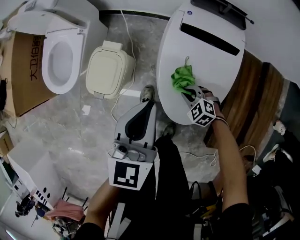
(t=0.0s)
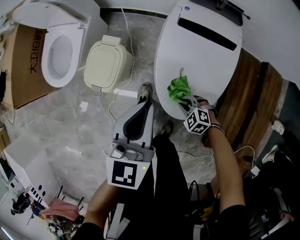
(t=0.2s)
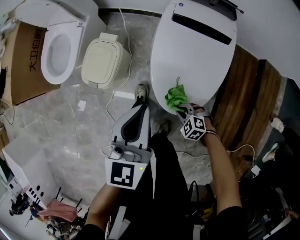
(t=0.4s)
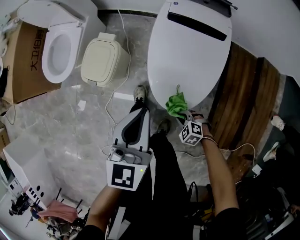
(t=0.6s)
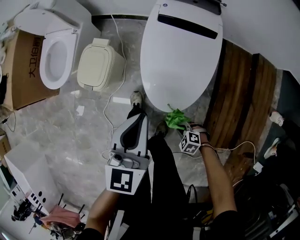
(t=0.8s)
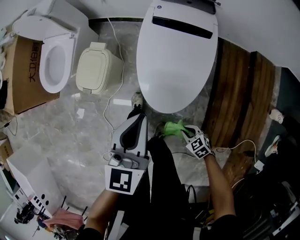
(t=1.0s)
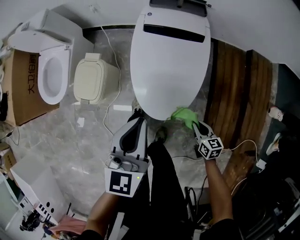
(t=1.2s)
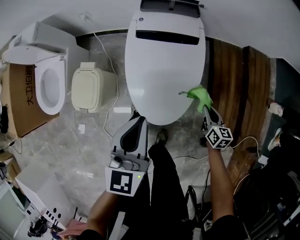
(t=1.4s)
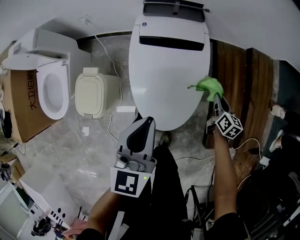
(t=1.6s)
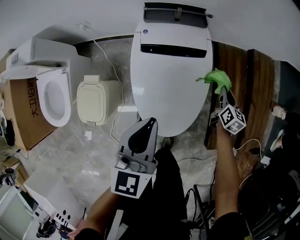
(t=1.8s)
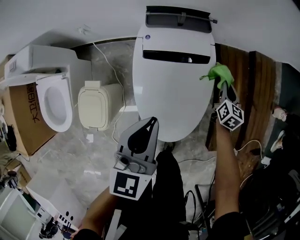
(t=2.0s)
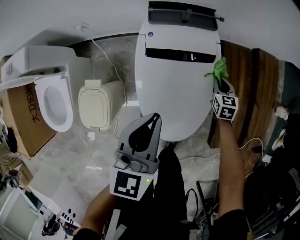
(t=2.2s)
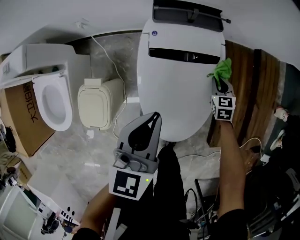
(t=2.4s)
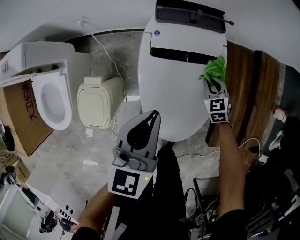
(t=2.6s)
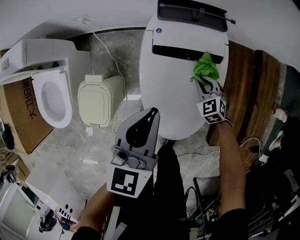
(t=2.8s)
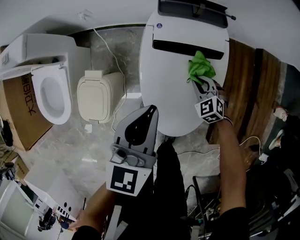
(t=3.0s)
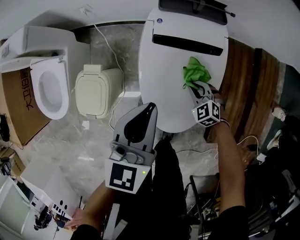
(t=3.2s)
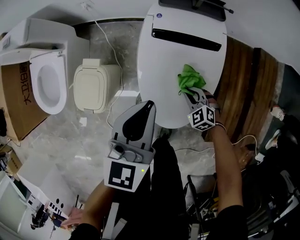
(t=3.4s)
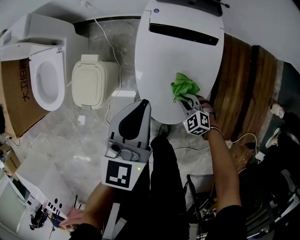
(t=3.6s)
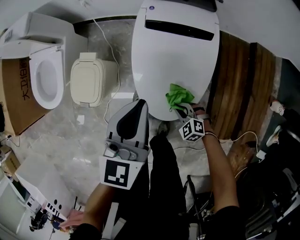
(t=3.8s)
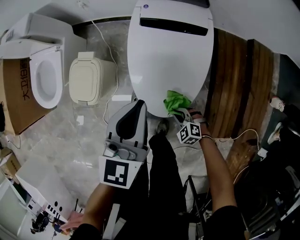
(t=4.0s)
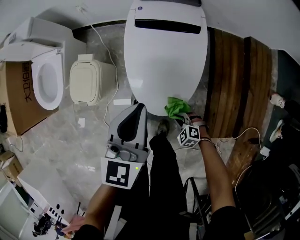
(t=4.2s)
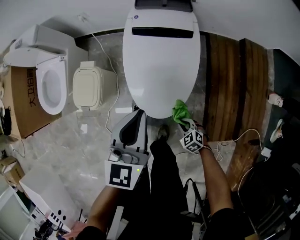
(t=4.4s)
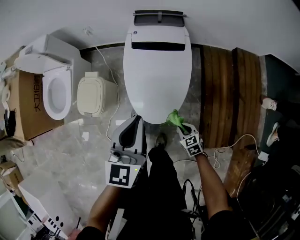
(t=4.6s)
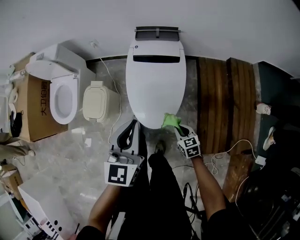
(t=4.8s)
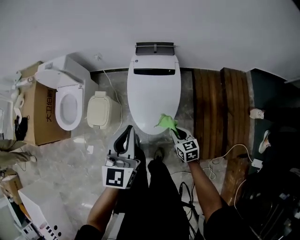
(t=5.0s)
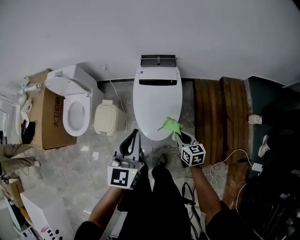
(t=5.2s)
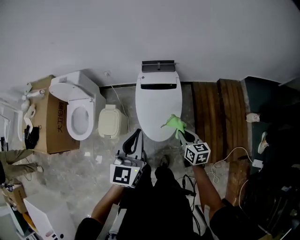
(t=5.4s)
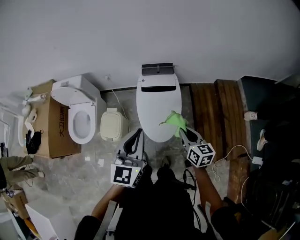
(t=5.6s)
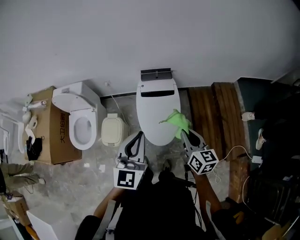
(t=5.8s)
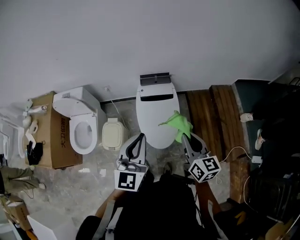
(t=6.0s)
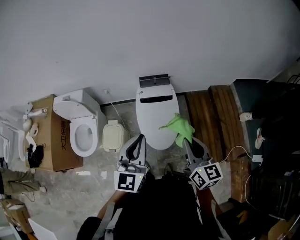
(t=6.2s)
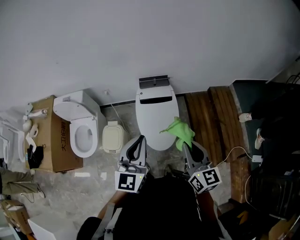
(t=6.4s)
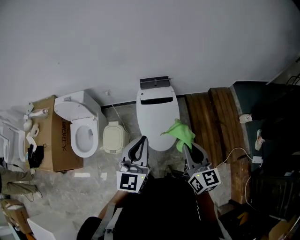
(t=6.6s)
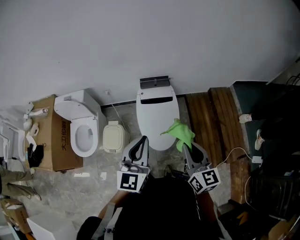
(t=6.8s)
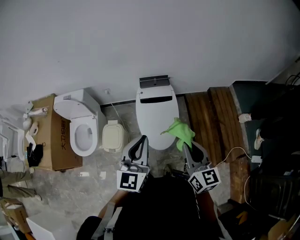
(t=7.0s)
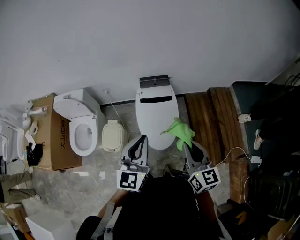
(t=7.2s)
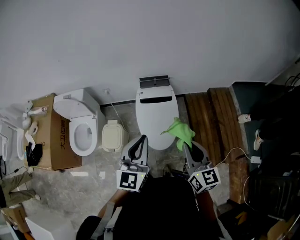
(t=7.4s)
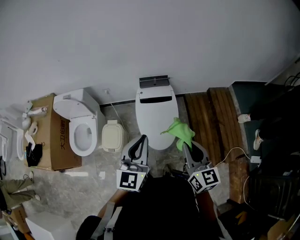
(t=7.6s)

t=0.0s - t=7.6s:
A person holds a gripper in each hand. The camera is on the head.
t=0.0s - t=1.6s: The right gripper ends up about 30 cm from where it was, and twists roughly 80 degrees clockwise, seen from behind; the left gripper moves approximately 15 cm.
t=1.6s - t=3.0s: The right gripper shifts roughly 20 cm to the left, and twists some 70 degrees counterclockwise, seen from behind. Meanwhile the left gripper heads forward and to the left, covering roughly 15 cm.
t=3.0s - t=4.6s: The left gripper is displaced backward and upward by about 25 cm. Meanwhile the right gripper is displaced backward by roughly 35 cm, and turns by approximately 30 degrees.
t=4.6s - t=6.0s: The left gripper heads upward, covering roughly 30 cm. The right gripper heads upward, covering approximately 60 cm, and angles its fingers upward, by about 40 degrees.
t=6.0s - t=7.6s: The right gripper travels backward by about 5 cm.

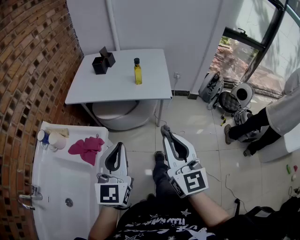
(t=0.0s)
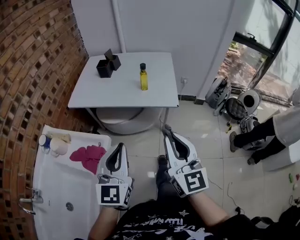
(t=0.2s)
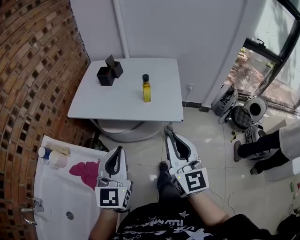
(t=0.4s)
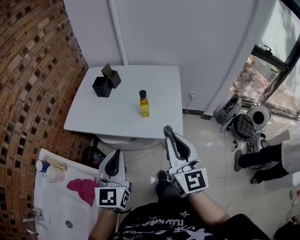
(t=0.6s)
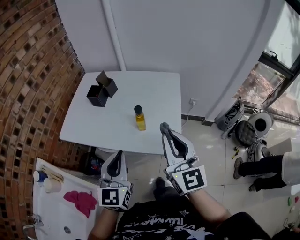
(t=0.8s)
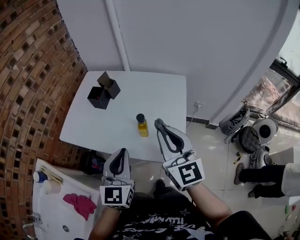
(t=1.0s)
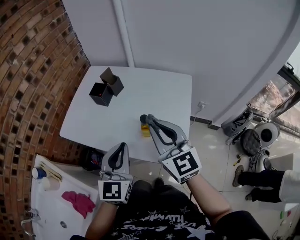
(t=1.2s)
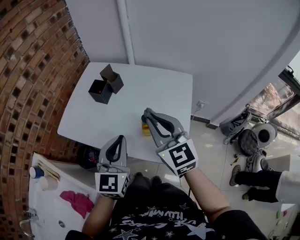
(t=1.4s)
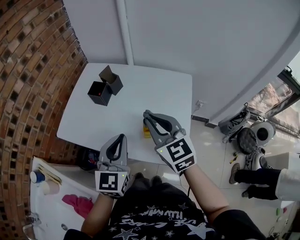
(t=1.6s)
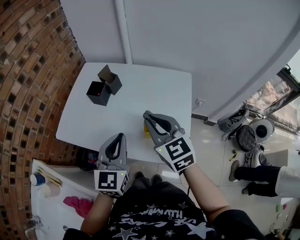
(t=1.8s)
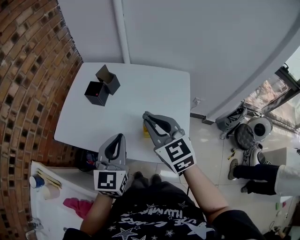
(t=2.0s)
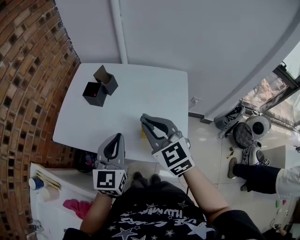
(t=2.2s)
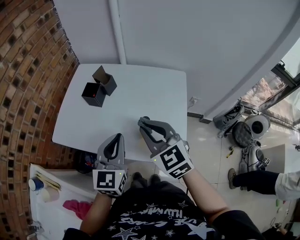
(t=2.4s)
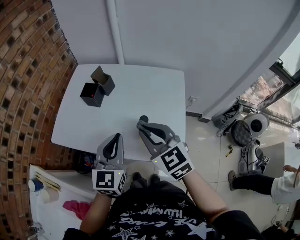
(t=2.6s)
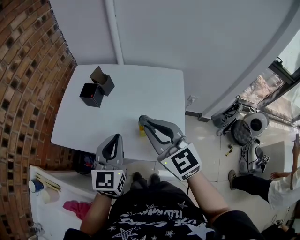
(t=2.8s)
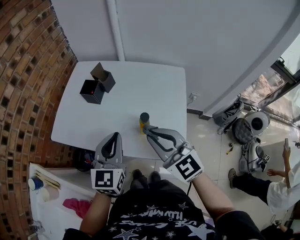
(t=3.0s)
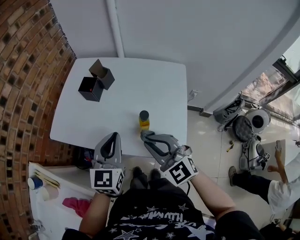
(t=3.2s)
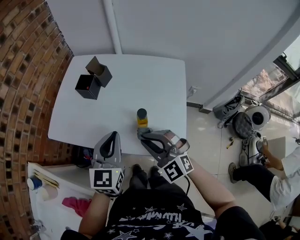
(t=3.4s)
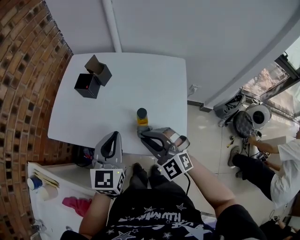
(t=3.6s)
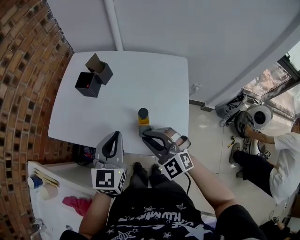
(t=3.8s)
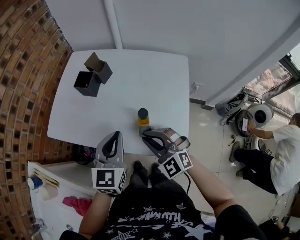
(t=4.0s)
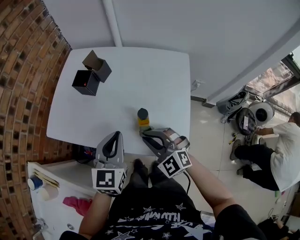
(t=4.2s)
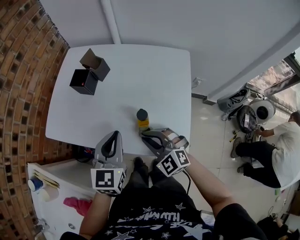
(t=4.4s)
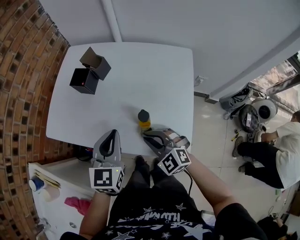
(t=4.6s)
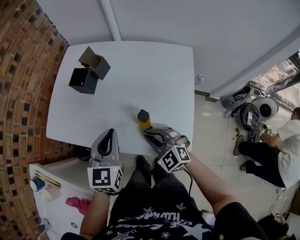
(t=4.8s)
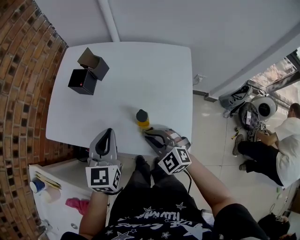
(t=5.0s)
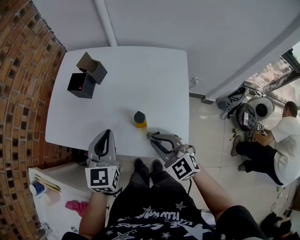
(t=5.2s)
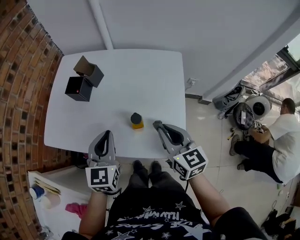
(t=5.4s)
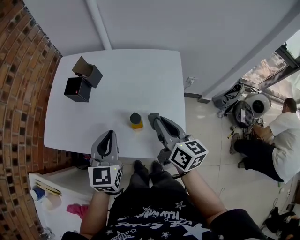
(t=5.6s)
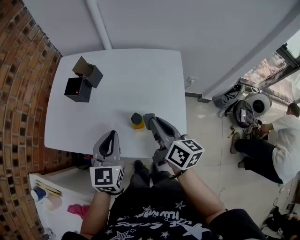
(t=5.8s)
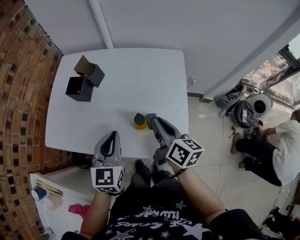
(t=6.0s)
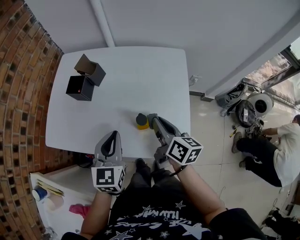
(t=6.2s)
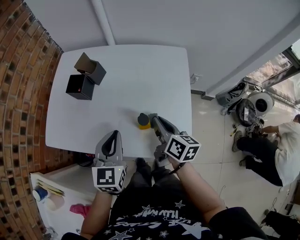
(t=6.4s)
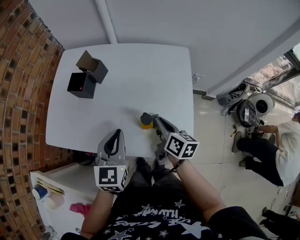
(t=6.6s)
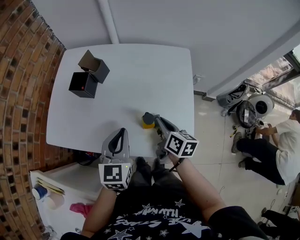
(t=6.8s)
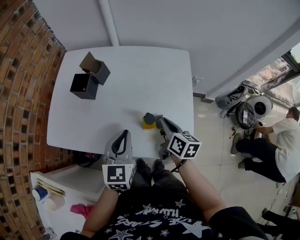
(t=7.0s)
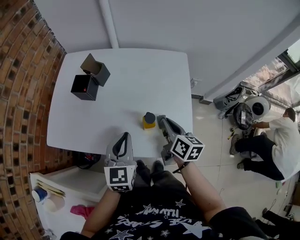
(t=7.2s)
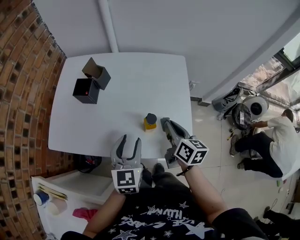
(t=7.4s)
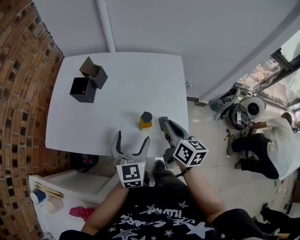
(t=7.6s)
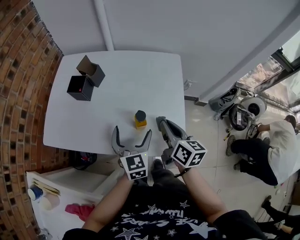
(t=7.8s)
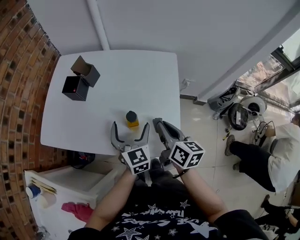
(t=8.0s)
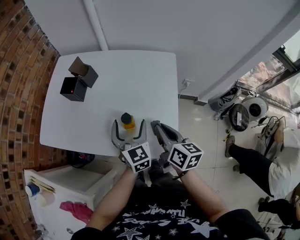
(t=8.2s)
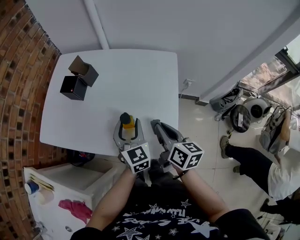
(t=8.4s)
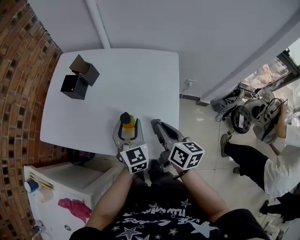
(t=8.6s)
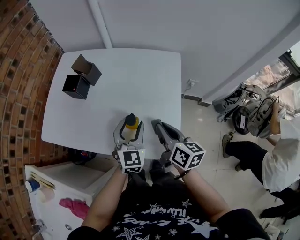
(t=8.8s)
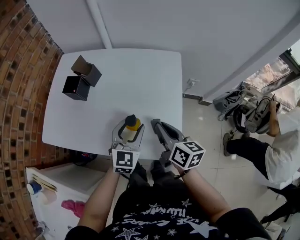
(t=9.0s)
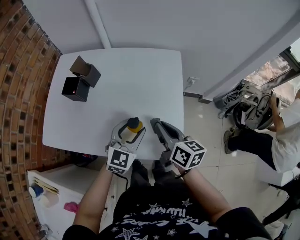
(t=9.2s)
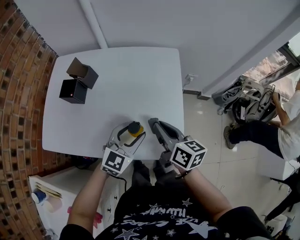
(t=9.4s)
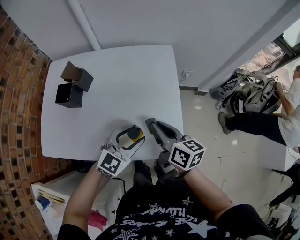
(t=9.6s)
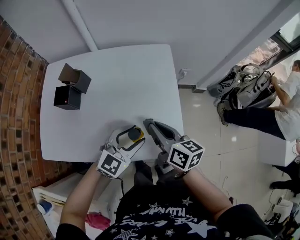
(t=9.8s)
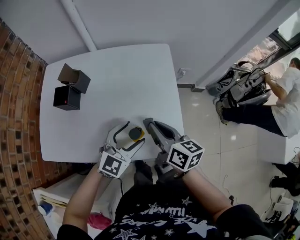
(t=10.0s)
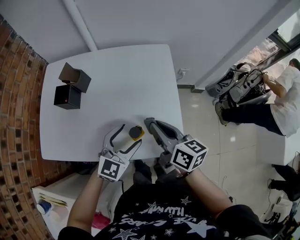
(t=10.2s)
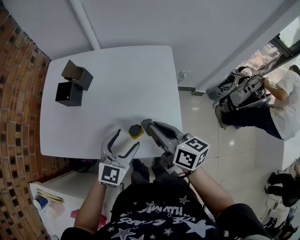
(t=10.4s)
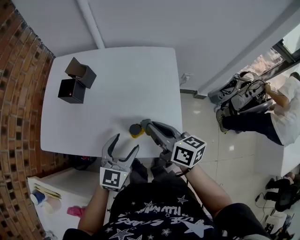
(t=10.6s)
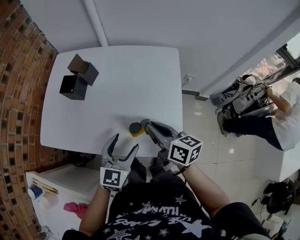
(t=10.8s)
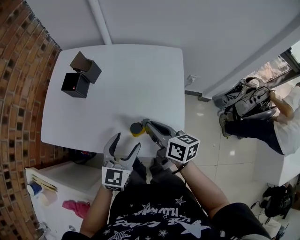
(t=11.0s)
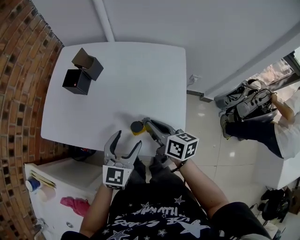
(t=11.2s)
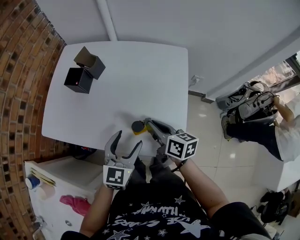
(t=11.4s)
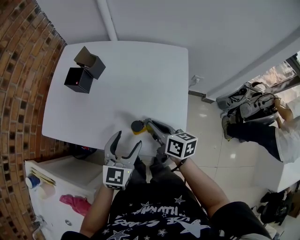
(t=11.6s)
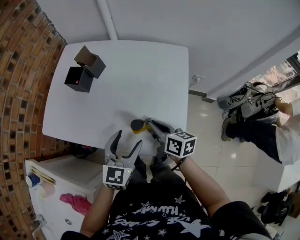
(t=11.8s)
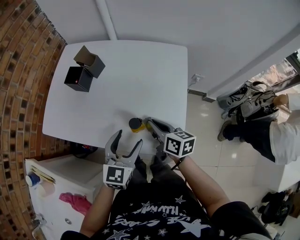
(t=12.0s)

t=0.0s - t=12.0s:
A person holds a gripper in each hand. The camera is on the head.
t=0.0s - t=1.6s: The two grippers travel together, forward, some 40 cm. The right gripper turns by roughly 30 degrees.
t=1.6s - t=3.0s: The right gripper shifts approximately 5 cm backward.
t=3.0s - t=4.4s: The left gripper moves downward, approximately 5 cm. The right gripper is displaced downward by about 15 cm, and rotates some 30 degrees.
t=4.4s - t=6.0s: The right gripper is displaced to the right, forward and upward by approximately 10 cm, and twists roughly 80 degrees clockwise, seen from behind.
t=6.0s - t=7.6s: The right gripper moves about 10 cm downward and comes back. Meanwhile the left gripper moves approximately 5 cm, and opens.
t=7.6s - t=9.0s: The left gripper shifts some 5 cm to the right.
t=9.0s - t=10.4s: The right gripper shifts by some 5 cm, while the left gripper travels backward by roughly 5 cm.
t=10.4s - t=12.0s: The right gripper heads downward, covering about 10 cm; the left gripper turns by about 20 degrees.

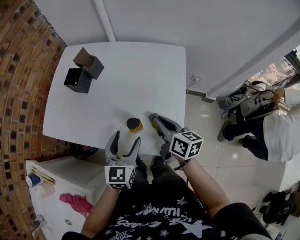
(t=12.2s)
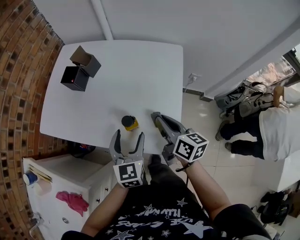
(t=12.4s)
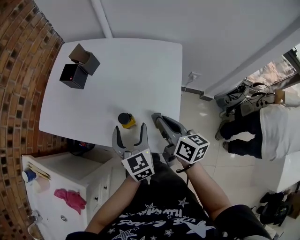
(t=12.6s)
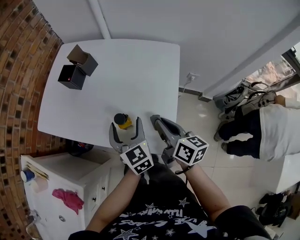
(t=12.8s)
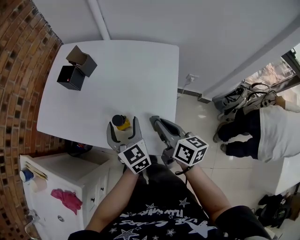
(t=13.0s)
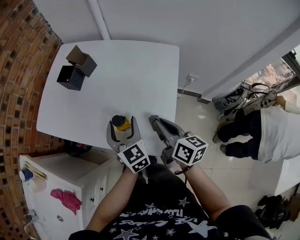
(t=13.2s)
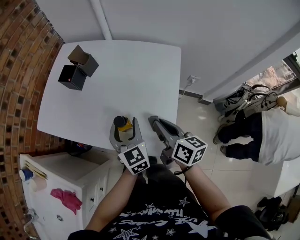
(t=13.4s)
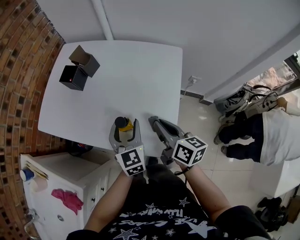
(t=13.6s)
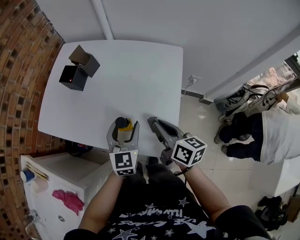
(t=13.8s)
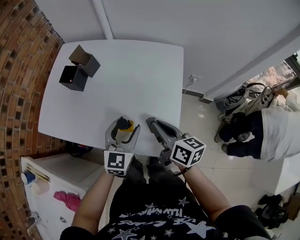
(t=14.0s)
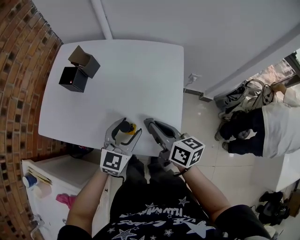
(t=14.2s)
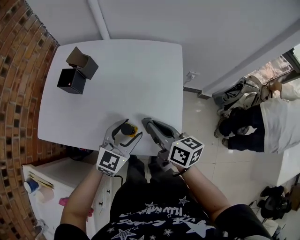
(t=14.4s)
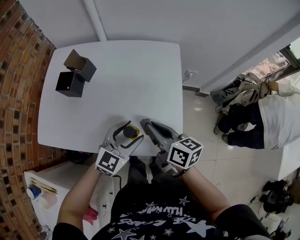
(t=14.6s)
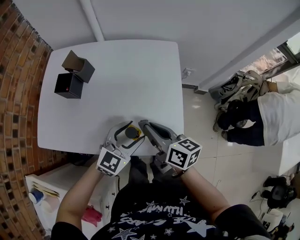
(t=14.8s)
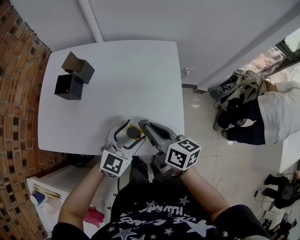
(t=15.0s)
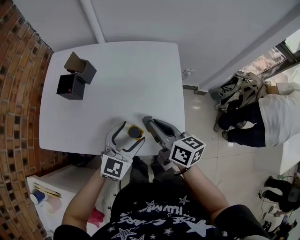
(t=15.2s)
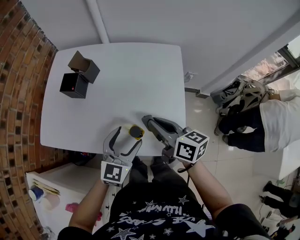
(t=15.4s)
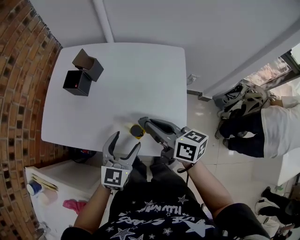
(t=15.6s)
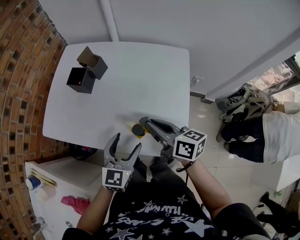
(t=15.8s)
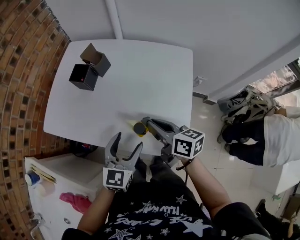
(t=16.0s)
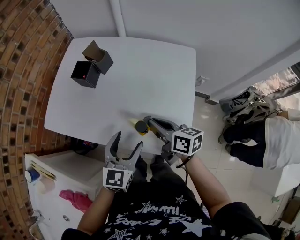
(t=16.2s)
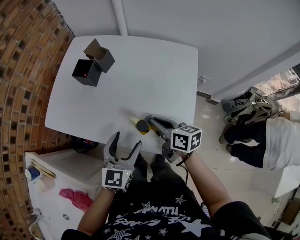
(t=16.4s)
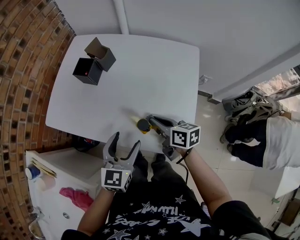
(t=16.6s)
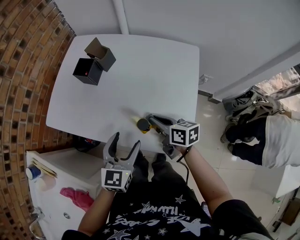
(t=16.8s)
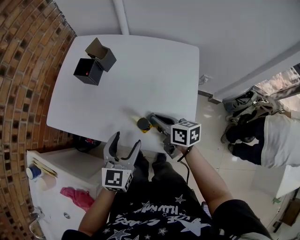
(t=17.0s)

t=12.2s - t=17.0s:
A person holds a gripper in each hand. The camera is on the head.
t=12.2s - t=13.8s: The left gripper shifts by about 5 cm.
t=13.8s - t=15.4s: The left gripper rotates about 30 degrees; the right gripper shifts roughly 5 cm to the left.
t=15.4s - t=17.0s: The right gripper goes some 10 cm downward. Meanwhile the left gripper shifts by about 5 cm, and swivels some 20 degrees.
